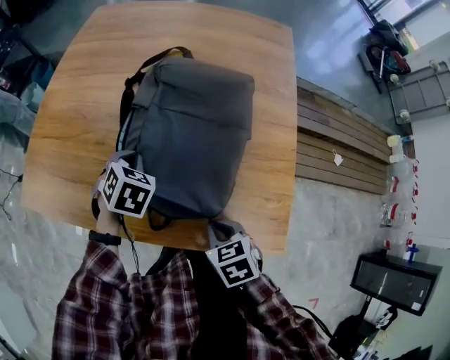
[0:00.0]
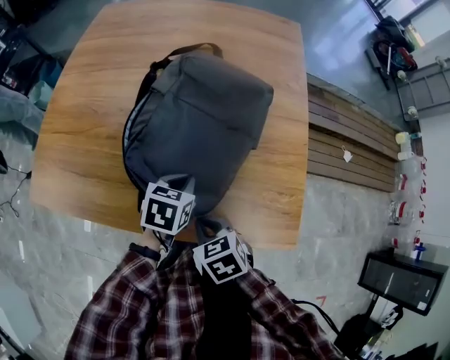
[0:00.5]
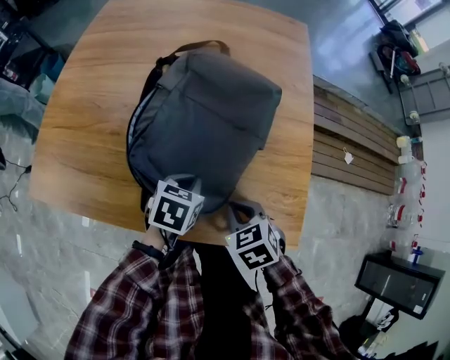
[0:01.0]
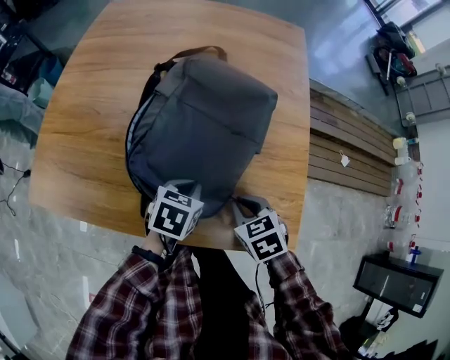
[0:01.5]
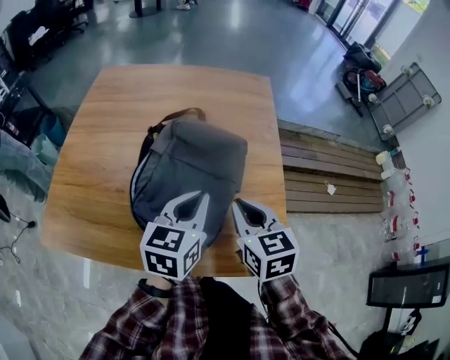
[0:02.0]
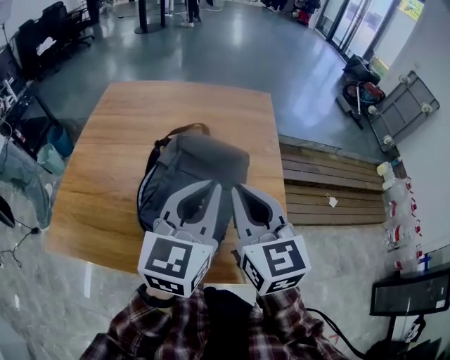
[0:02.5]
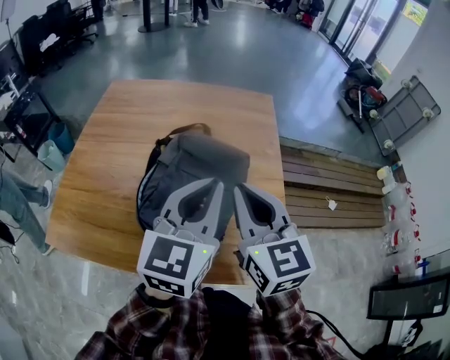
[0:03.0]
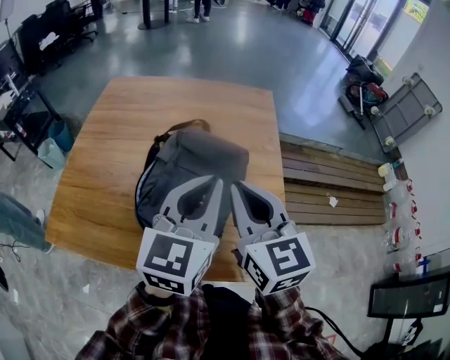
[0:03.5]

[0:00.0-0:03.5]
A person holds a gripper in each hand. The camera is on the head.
0:00.0 to 0:02.0: The grippers both shift upward by roughly 20 cm. The left gripper tips its fingers upward by roughly 40 degrees. The right gripper tilts its fingers roughly 30 degrees upward.
0:02.0 to 0:03.5: The grippers both shift upward by approximately 15 cm. The right gripper changes its angle by approximately 20 degrees.
